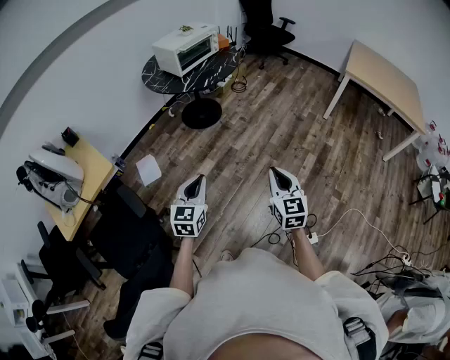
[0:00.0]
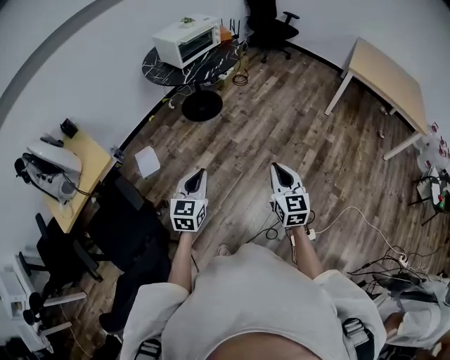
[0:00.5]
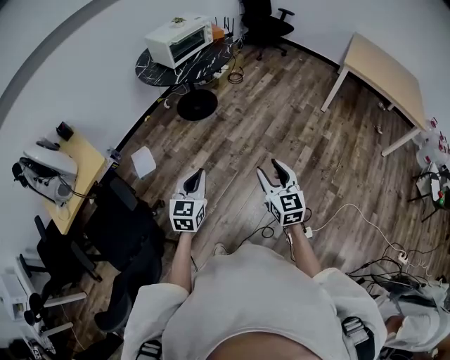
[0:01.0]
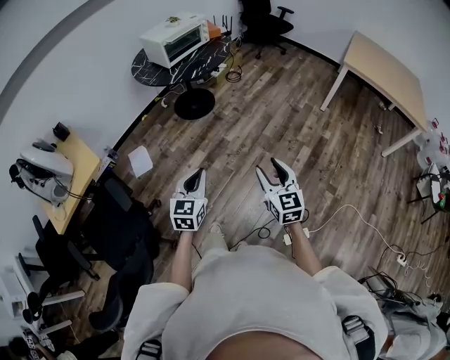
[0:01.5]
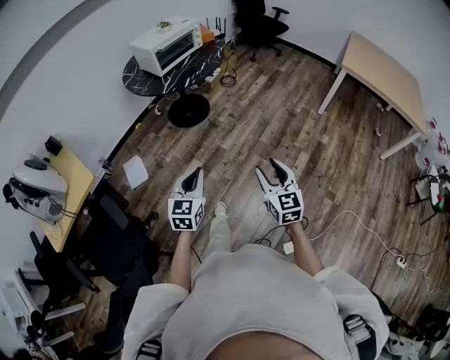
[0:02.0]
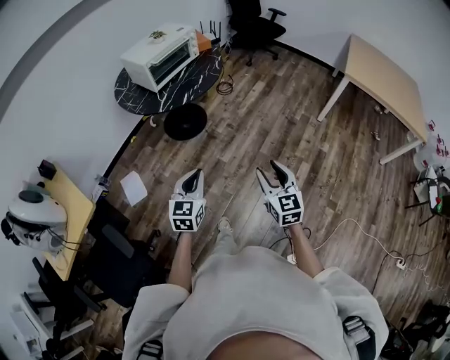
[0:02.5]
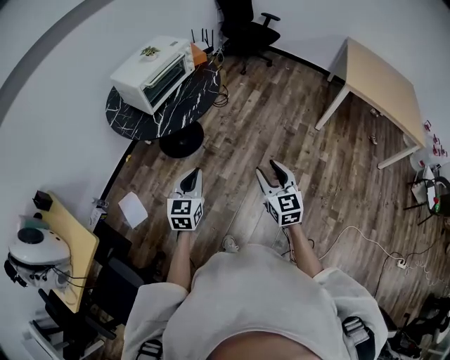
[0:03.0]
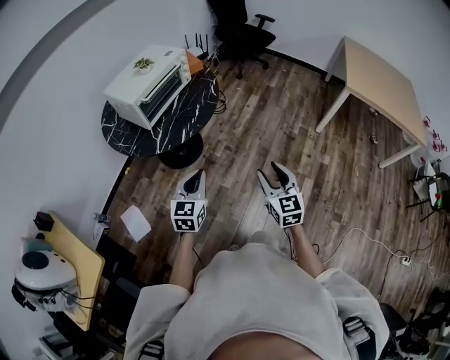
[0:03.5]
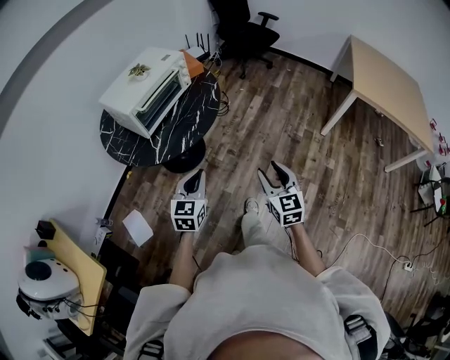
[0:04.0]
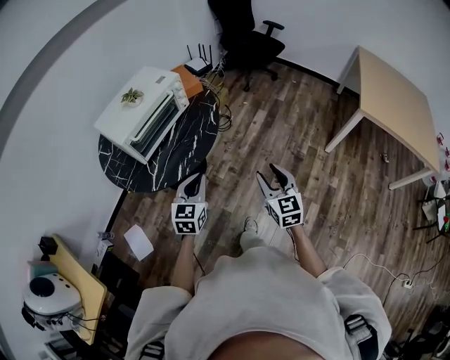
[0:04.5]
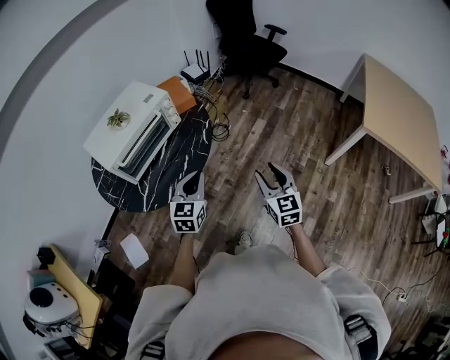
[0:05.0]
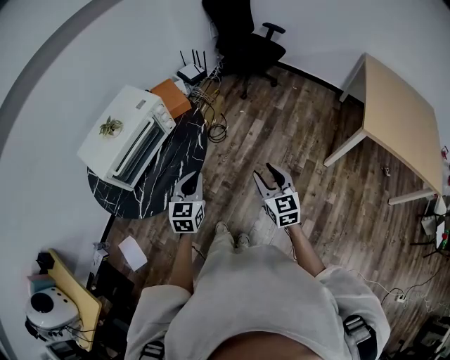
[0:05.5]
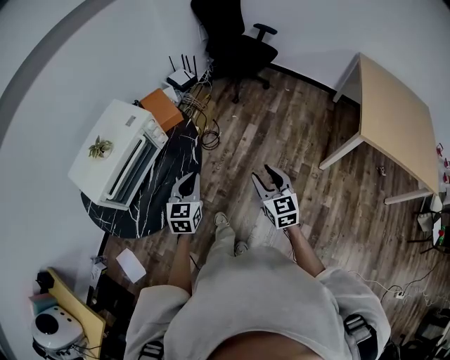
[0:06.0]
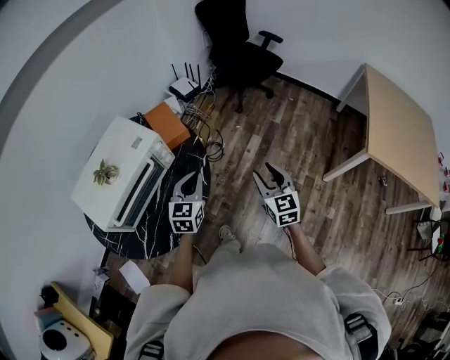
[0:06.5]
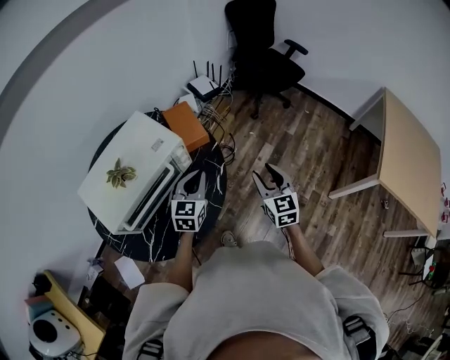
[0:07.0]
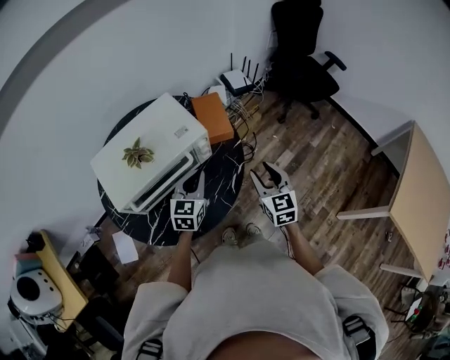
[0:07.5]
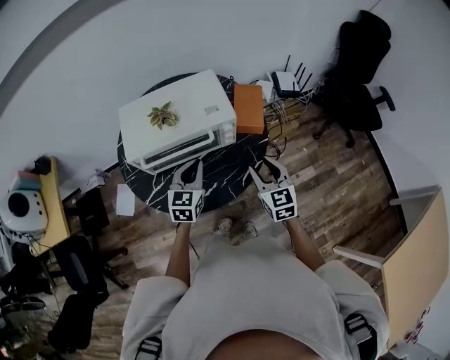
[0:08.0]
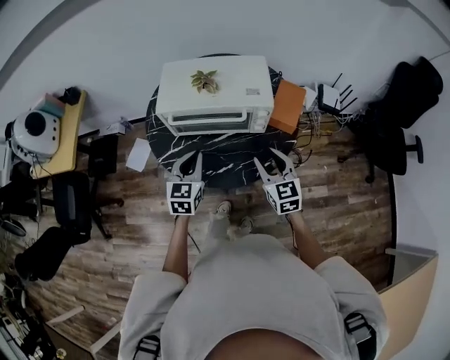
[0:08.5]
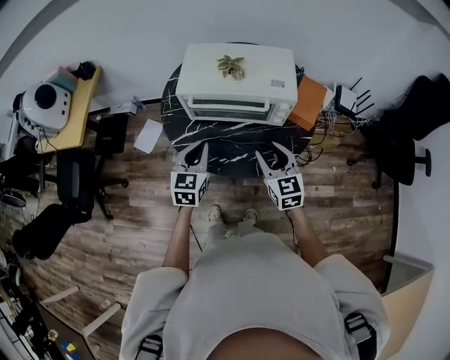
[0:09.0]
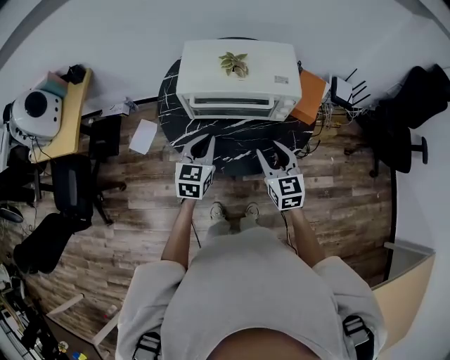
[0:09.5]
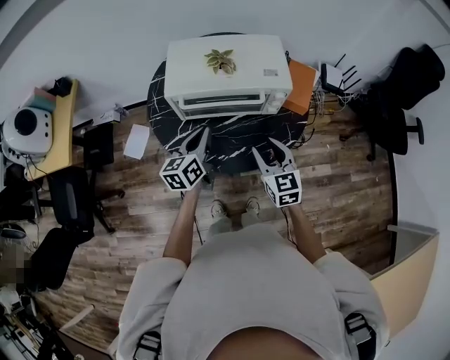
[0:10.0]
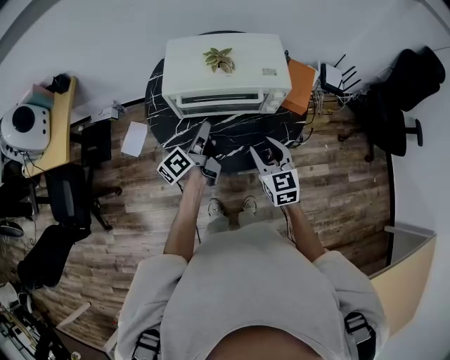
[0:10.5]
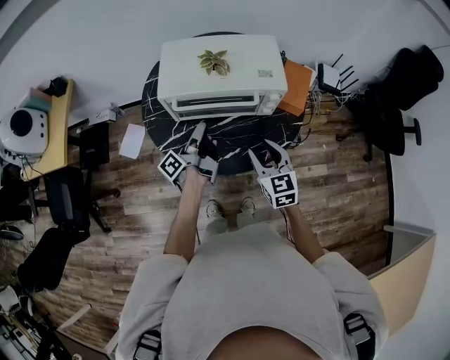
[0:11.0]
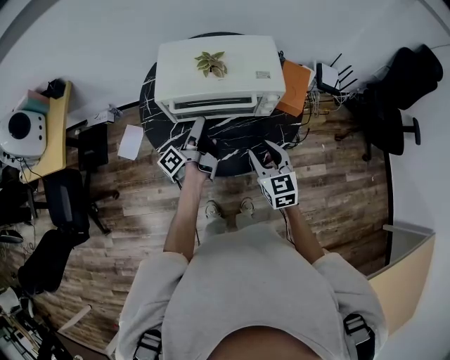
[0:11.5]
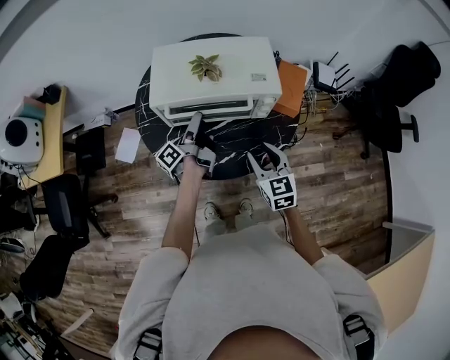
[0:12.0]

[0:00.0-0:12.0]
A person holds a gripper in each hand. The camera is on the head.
0:00.0 to 0:02.0: The two grippers go approximately 15 cm forward and to the right. The right gripper opens.
0:02.0 to 0:04.0: The two grippers travel together, forward, roughly 40 cm.
0:04.0 to 0:06.0: The two grippers go about 35 cm forward.
0:06.0 to 0:08.0: The right gripper shifts by some 30 cm, and changes its angle by about 40 degrees; the left gripper ends up roughly 20 cm from where it was, and turns by roughly 40 degrees.
0:08.0 to 0:10.0: Both grippers travel together to the left, approximately 15 cm. The left gripper swivels about 40 degrees.
0:10.0 to 0:12.0: The left gripper heads forward, covering some 10 cm, rotates around the line of its fingers by some 60 degrees, counterclockwise from behind, and opens up.

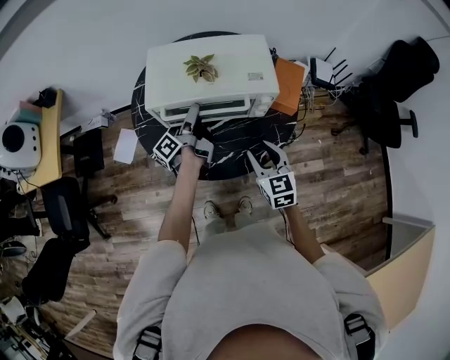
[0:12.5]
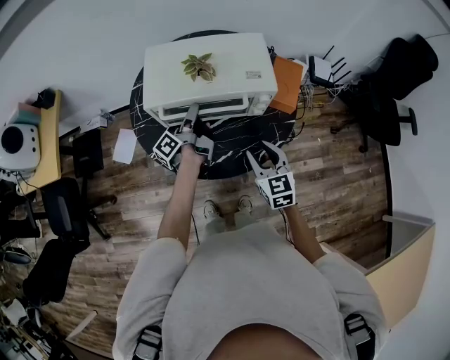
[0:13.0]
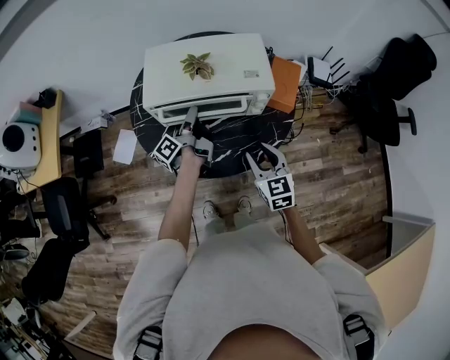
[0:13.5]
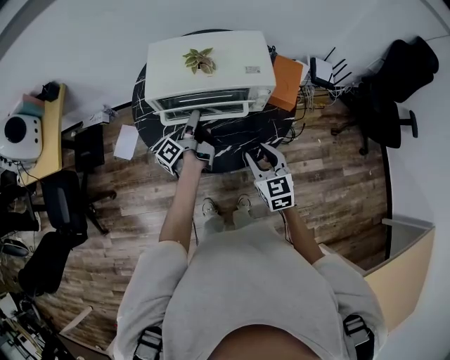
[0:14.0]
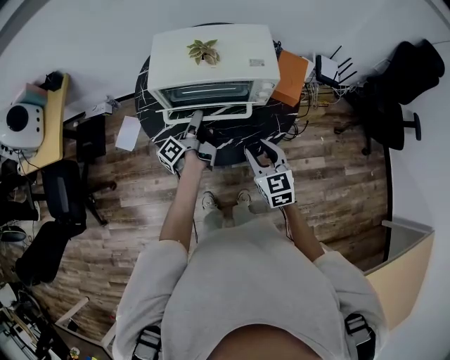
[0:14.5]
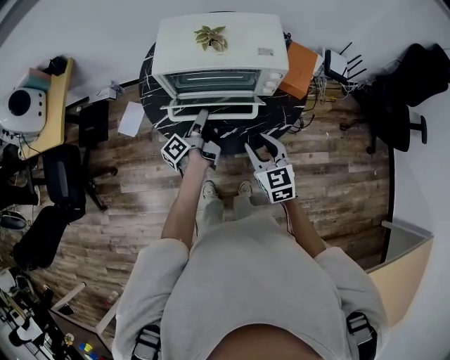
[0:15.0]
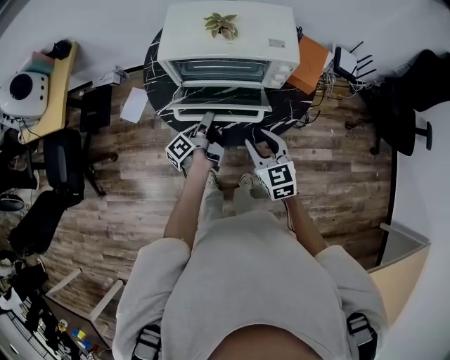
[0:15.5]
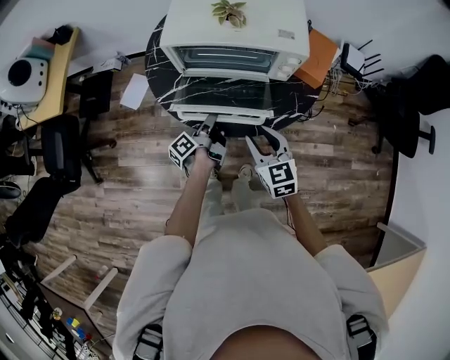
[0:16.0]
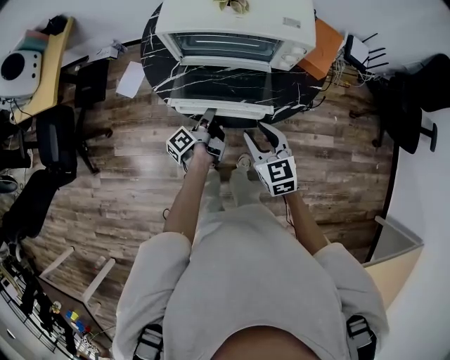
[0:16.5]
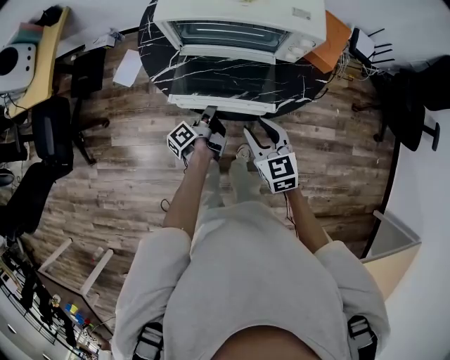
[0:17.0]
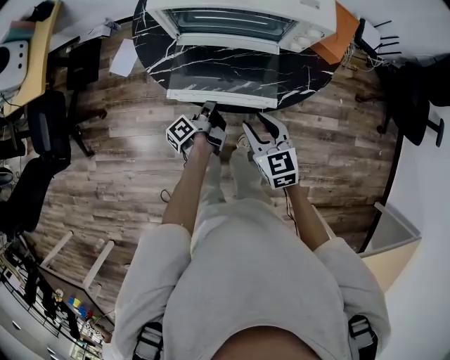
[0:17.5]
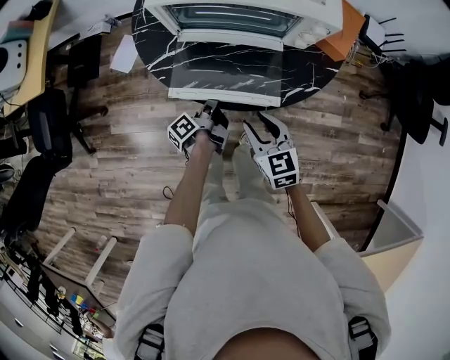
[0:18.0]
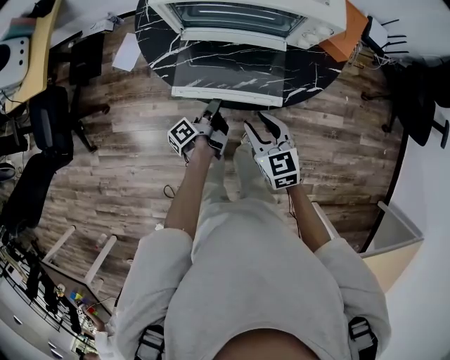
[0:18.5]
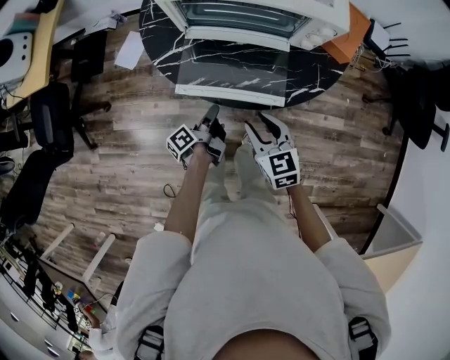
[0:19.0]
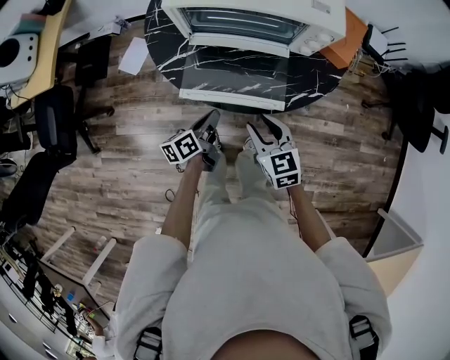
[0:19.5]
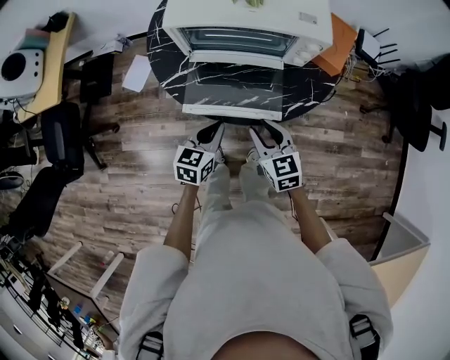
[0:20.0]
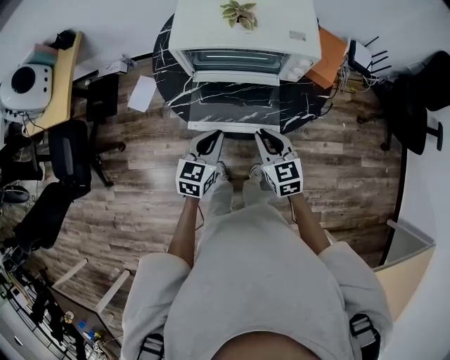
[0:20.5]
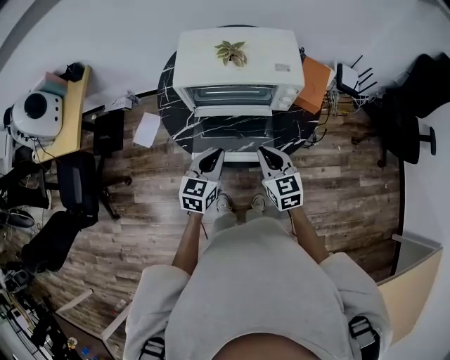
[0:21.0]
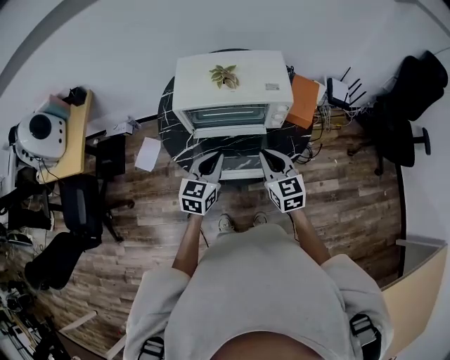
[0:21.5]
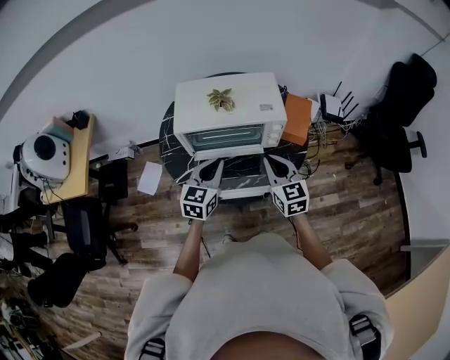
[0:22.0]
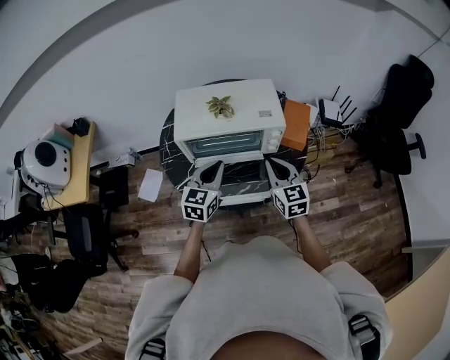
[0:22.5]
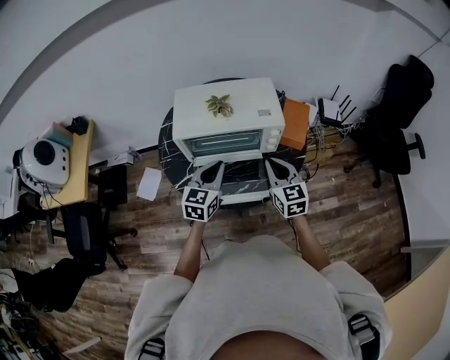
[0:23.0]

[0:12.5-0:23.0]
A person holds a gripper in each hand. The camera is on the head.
0:12.5 to 0:14.5: The left gripper travels backward by some 5 cm, and closes up.
0:14.5 to 0:16.5: The left gripper is displaced downward and backward by approximately 15 cm; the right gripper goes approximately 5 cm downward.
0:16.5 to 0:19.0: The left gripper is displaced downward and backward by about 10 cm. The right gripper is displaced downward by approximately 5 cm.
0:19.0 to 0:21.0: The left gripper goes roughly 20 cm upward, and rolls clockwise, seen from behind, by roughly 90 degrees; the right gripper shifts about 10 cm upward and forward, and closes its fingers.
0:21.0 to 0:23.0: The right gripper shifts approximately 10 cm upward, forward and to the right. Meanwhile the left gripper heads forward and upward, covering approximately 10 cm.

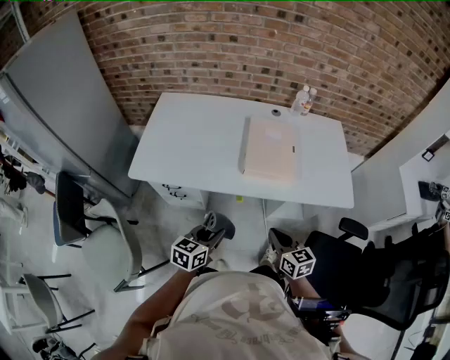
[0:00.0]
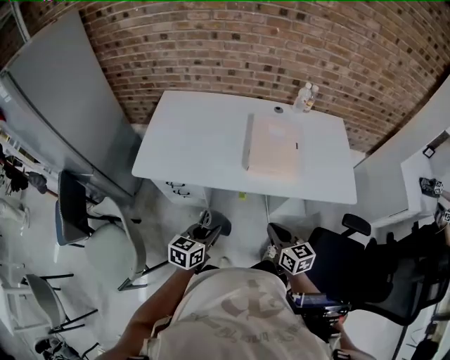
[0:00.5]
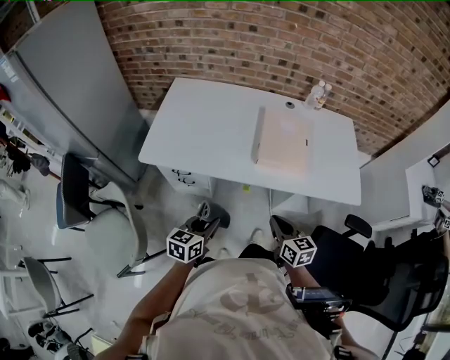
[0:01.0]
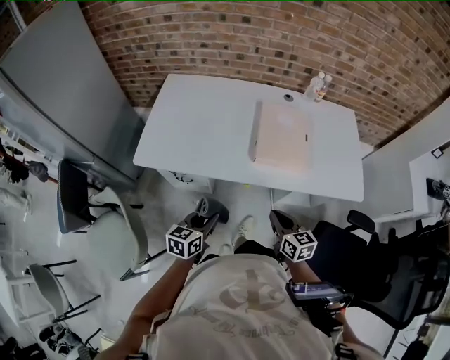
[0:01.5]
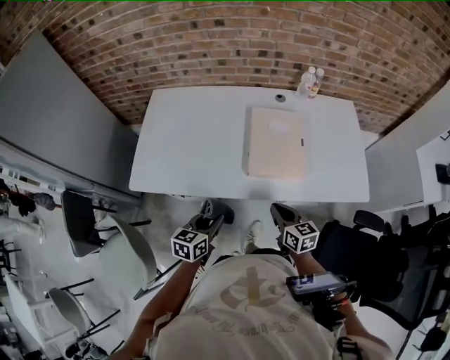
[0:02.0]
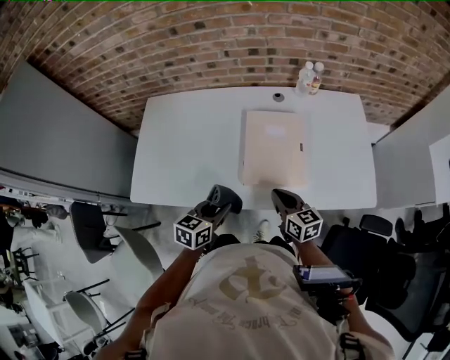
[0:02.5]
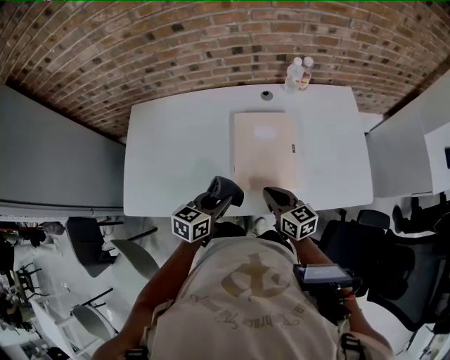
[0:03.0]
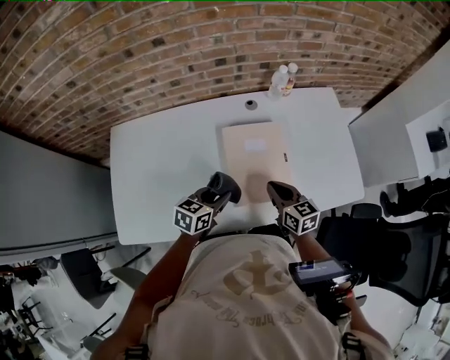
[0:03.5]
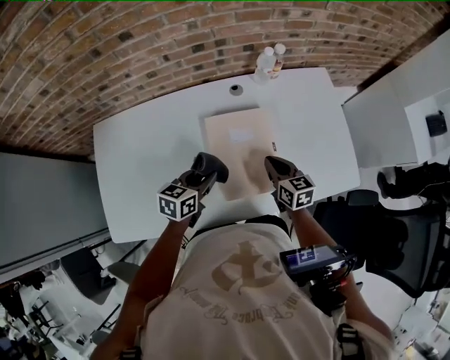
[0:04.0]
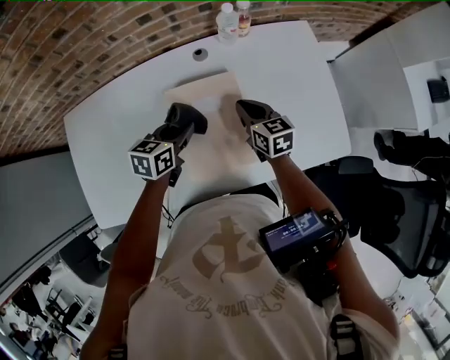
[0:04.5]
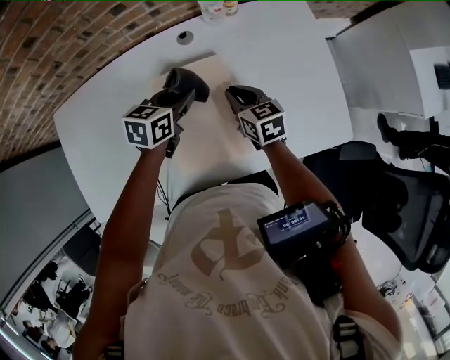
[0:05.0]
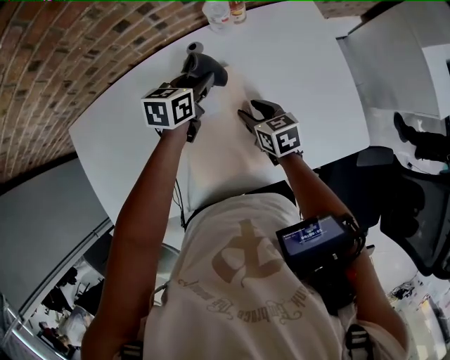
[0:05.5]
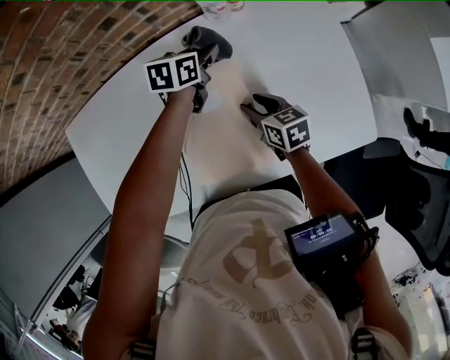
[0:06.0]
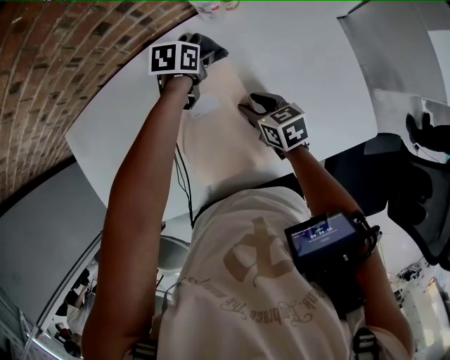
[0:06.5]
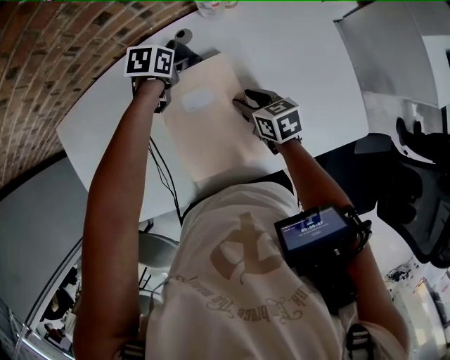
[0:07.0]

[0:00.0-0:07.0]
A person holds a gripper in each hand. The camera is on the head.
0:00.0 to 0:02.0: The two grippers go roughly 10 cm forward.
0:02.0 to 0:03.5: The two grippers go approximately 20 cm forward. The left gripper turns by some 20 degrees.
0:03.5 to 0:05.0: The left gripper shifts about 20 cm forward and to the right; the right gripper moves forward and downward, approximately 15 cm.
0:05.0 to 0:07.0: The right gripper shifts some 5 cm downward, and opens its fingers. Meanwhile the left gripper is displaced forward and downward by about 15 cm, and rotates some 30 degrees.
